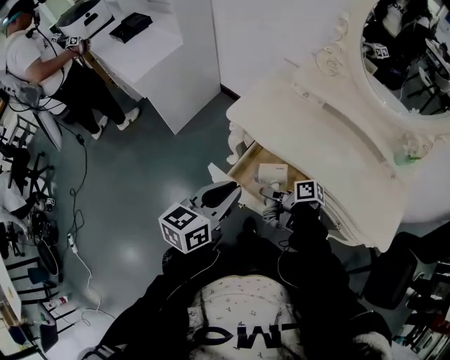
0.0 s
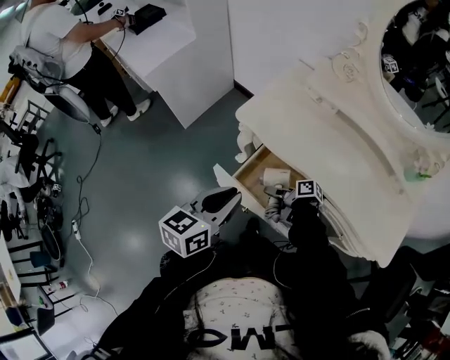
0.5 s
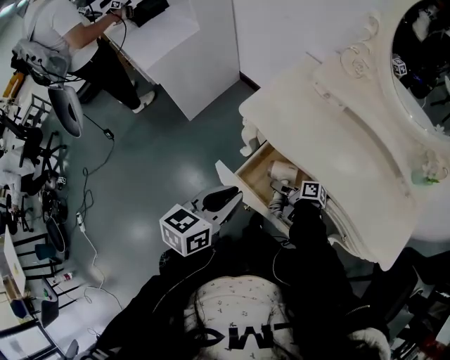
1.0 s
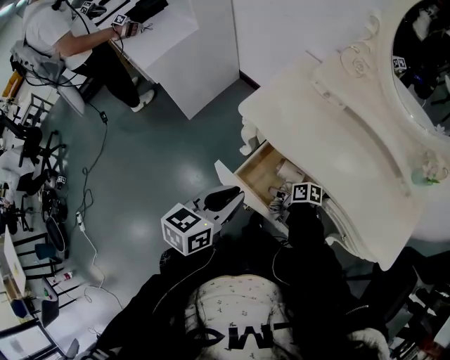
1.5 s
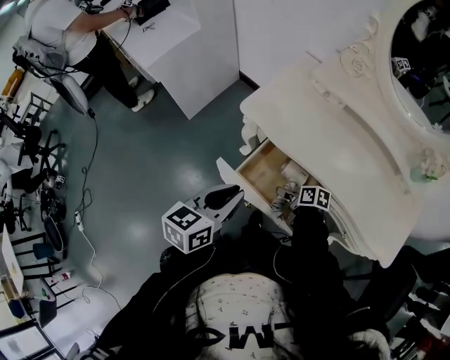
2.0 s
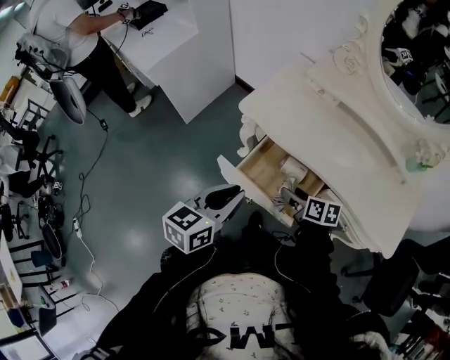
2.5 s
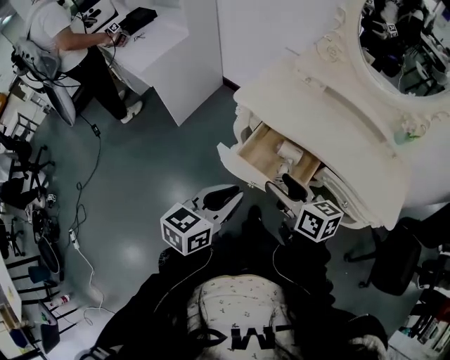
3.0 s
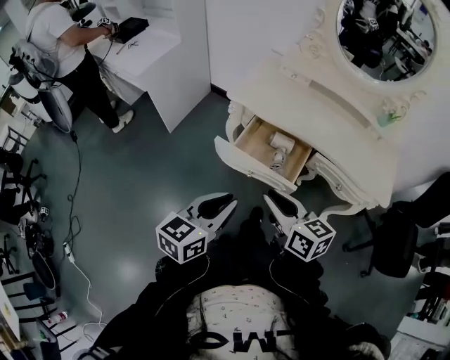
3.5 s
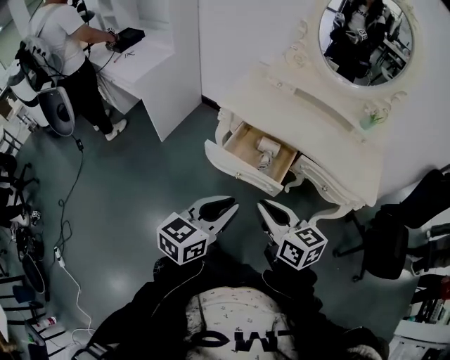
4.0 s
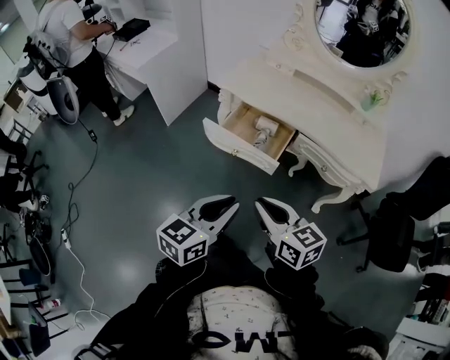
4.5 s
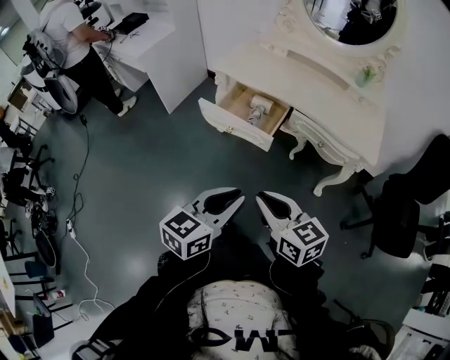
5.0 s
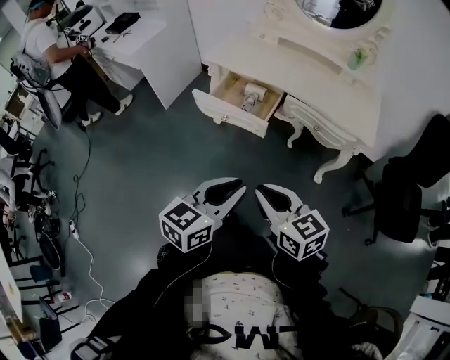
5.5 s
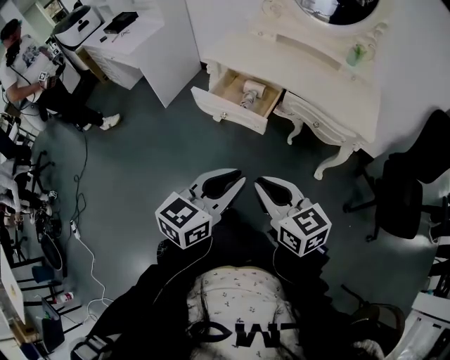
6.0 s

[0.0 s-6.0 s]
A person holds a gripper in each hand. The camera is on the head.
0.0 to 2.0 s: The right gripper goes approximately 10 cm downward and to the right, and turns by roughly 20 degrees.
2.0 to 4.0 s: The left gripper heads backward, covering some 20 cm. The right gripper heads upward and backward, covering approximately 40 cm, tips its fingers upward by approximately 30 degrees, and closes up.
4.0 to 6.0 s: The two grippers go about 20 cm backward and to the right.

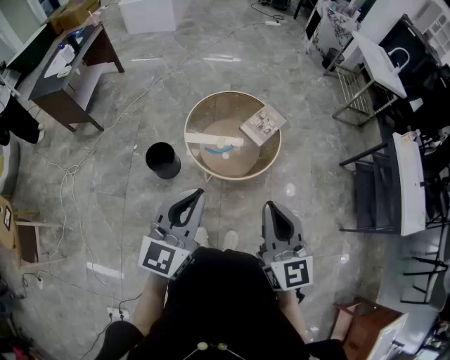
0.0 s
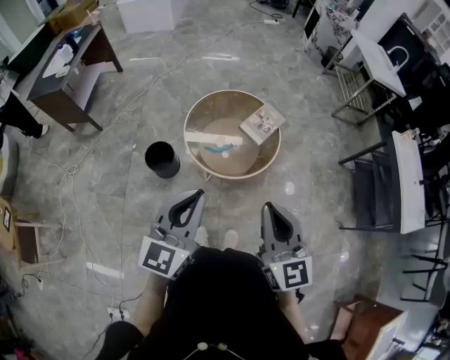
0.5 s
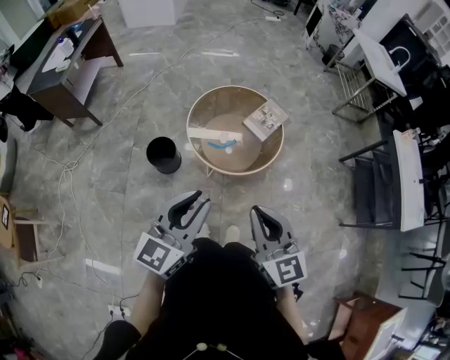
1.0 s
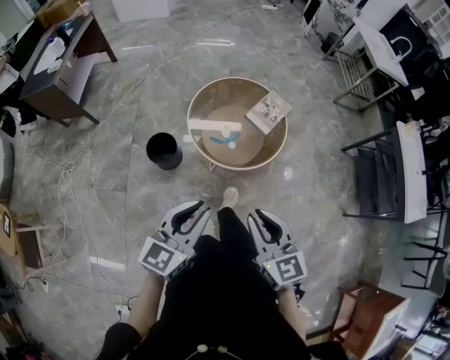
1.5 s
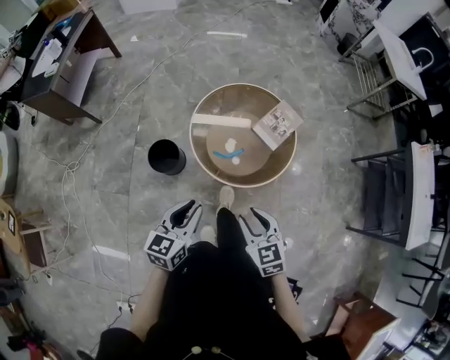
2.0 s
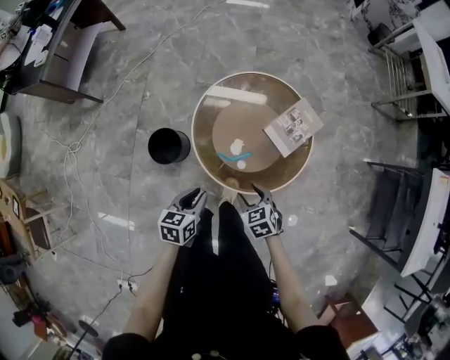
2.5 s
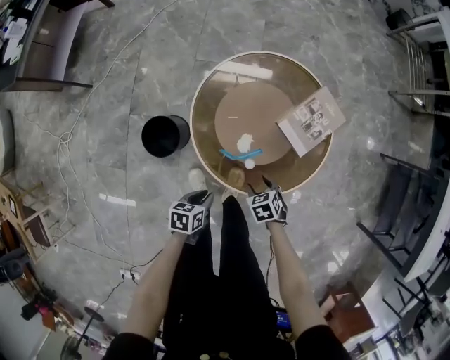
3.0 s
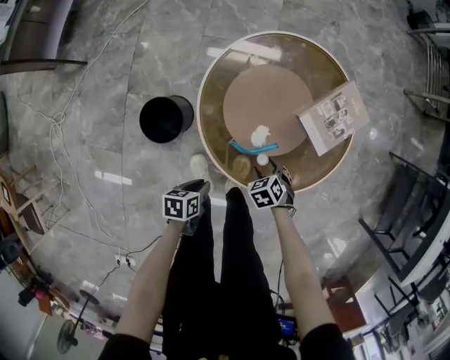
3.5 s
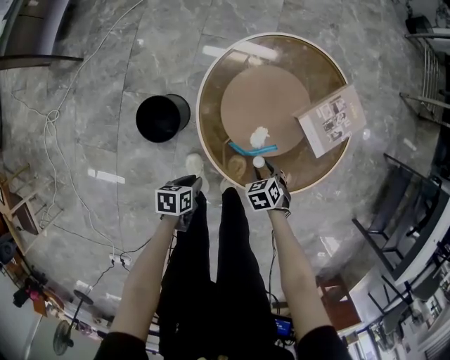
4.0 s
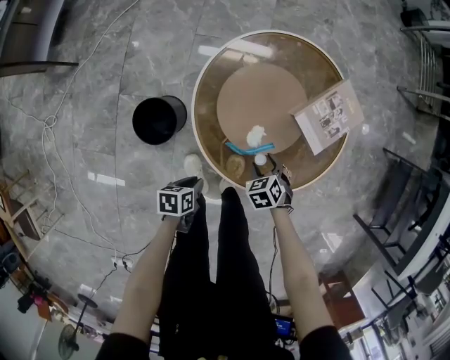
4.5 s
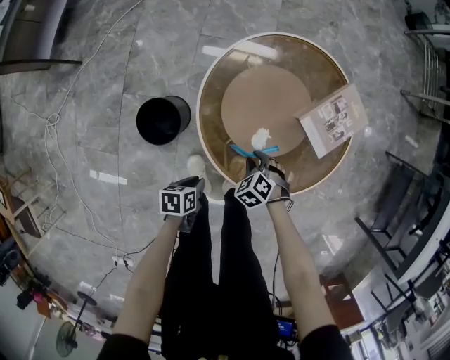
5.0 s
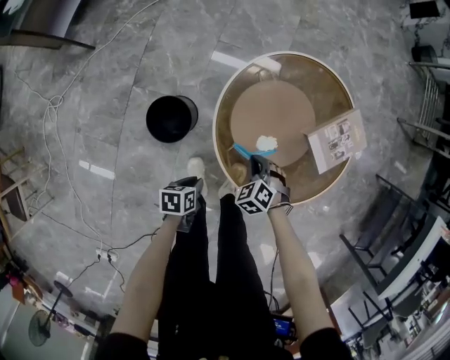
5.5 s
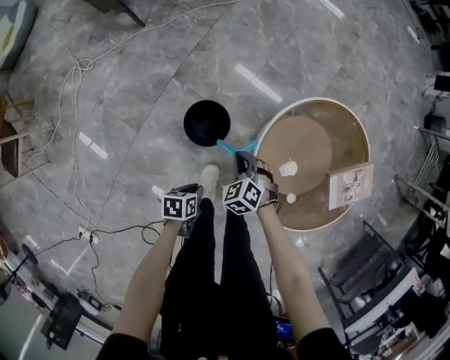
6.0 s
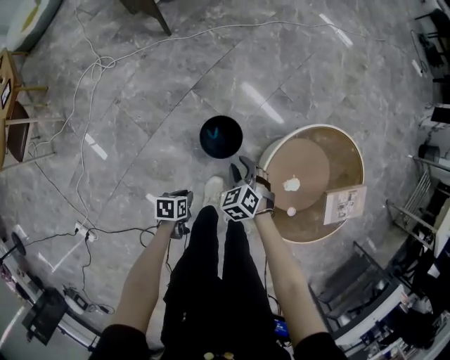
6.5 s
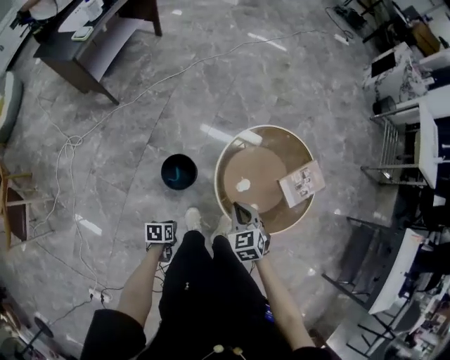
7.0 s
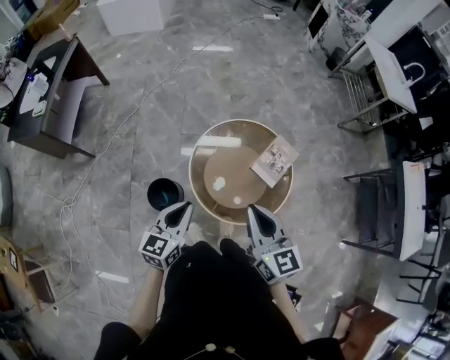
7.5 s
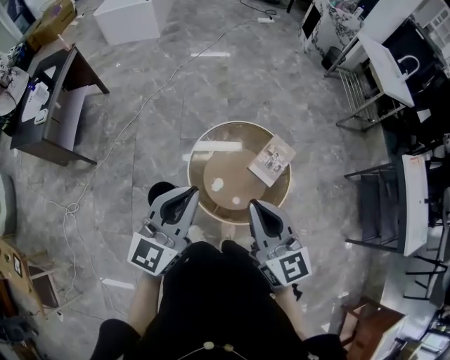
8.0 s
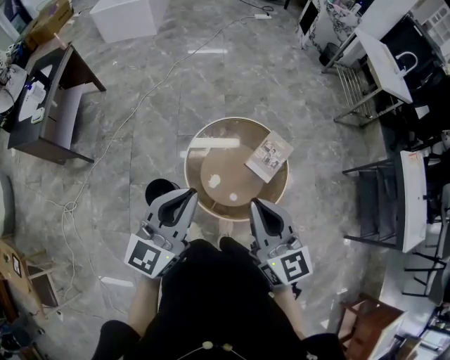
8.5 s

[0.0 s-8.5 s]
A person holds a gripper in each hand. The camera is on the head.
0.0 to 2.0 s: The right gripper moves downward, some 20 cm, tips its fingers downward by roughly 30 degrees, and opens its fingers. Meanwhile the left gripper travels downward and forward by roughly 20 cm, and turns by roughly 30 degrees.
2.0 to 4.0 s: Both grippers travel together downward, some 40 cm. The right gripper angles its fingers downward, by some 40 degrees. Meanwhile the left gripper angles its fingers downward, by roughly 30 degrees.
4.0 to 6.5 s: The right gripper shifts by about 40 cm, twists roughly 40 degrees counterclockwise, seen from behind, and closes, then opens again, while the left gripper shifts by roughly 25 cm, and changes its angle by some 30 degrees.
6.5 to 8.5 s: The grippers both shift upward and to the right by approximately 60 cm. The right gripper points its fingers some 60 degrees further upward, and closes; the left gripper tilts its fingers about 60 degrees upward.

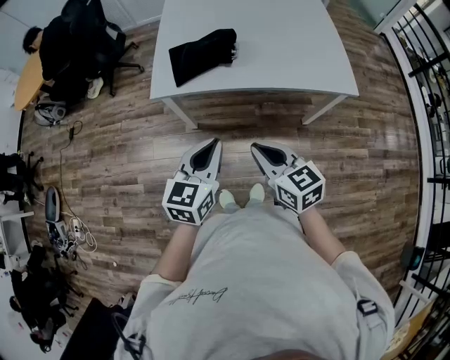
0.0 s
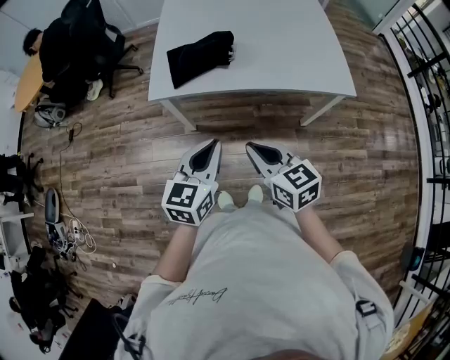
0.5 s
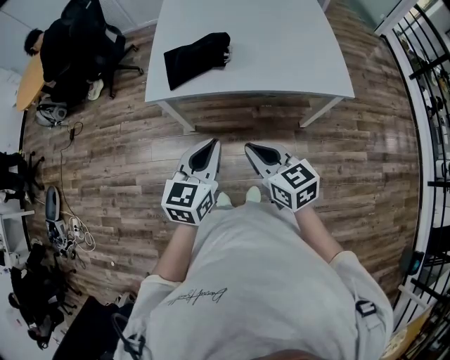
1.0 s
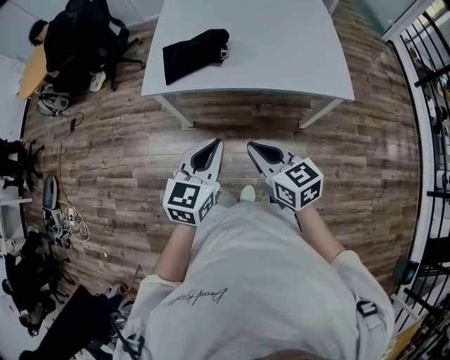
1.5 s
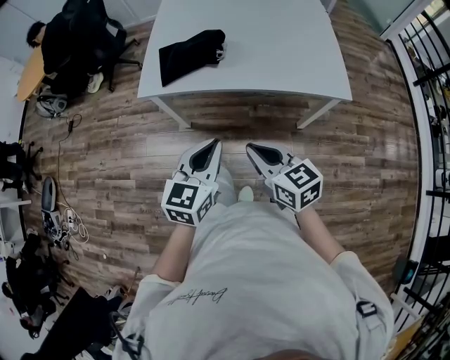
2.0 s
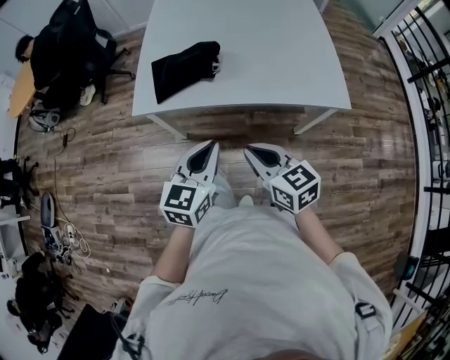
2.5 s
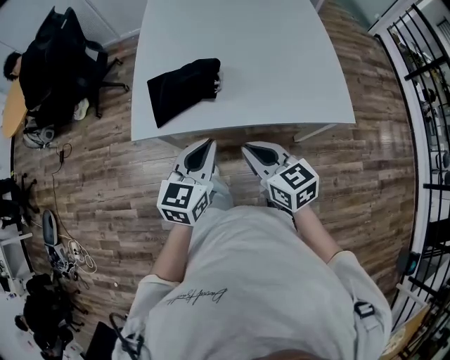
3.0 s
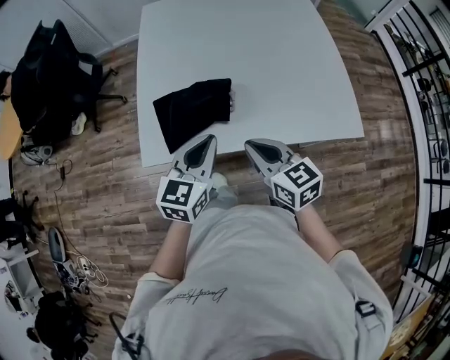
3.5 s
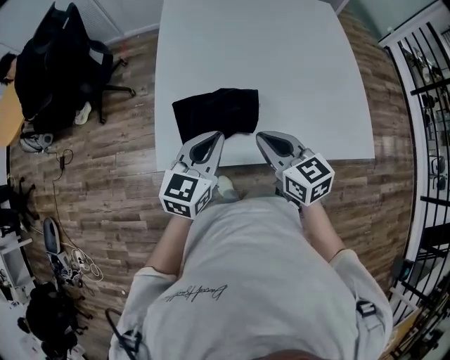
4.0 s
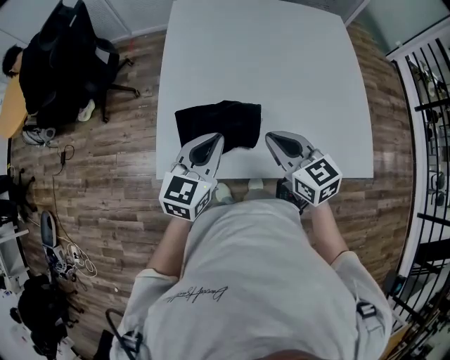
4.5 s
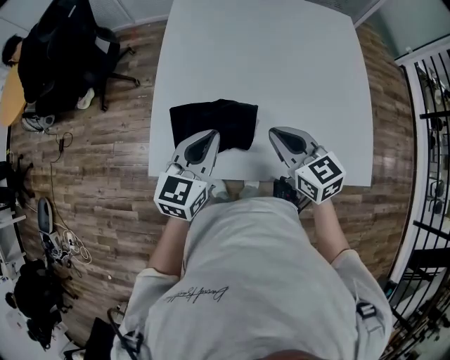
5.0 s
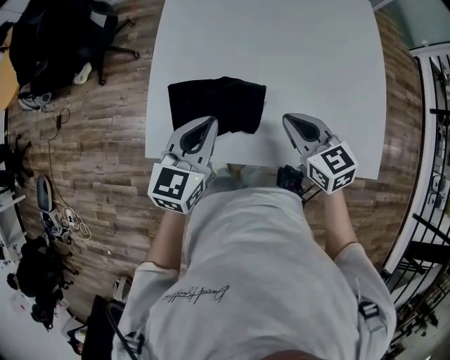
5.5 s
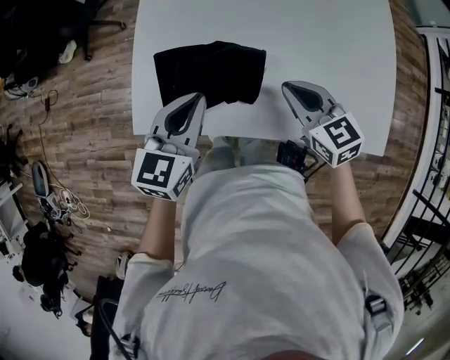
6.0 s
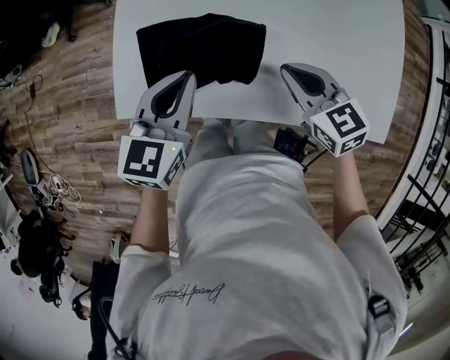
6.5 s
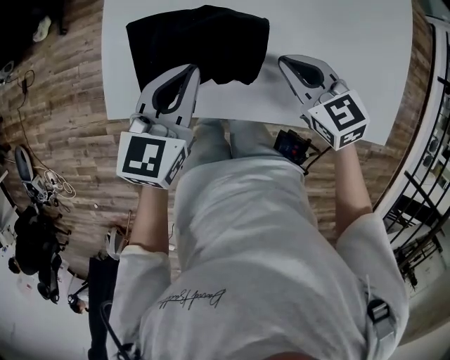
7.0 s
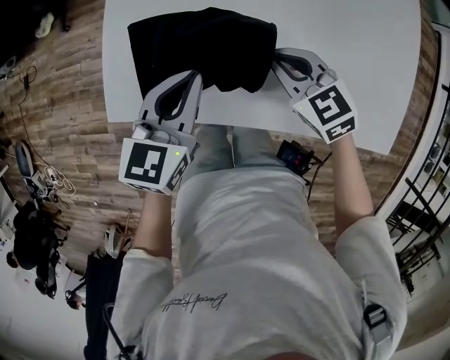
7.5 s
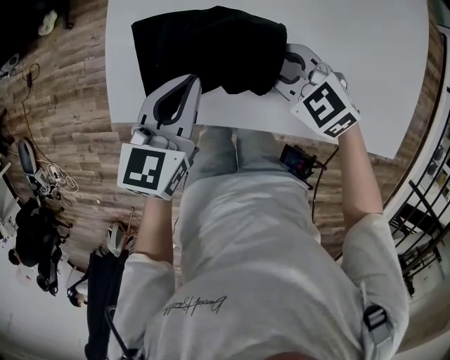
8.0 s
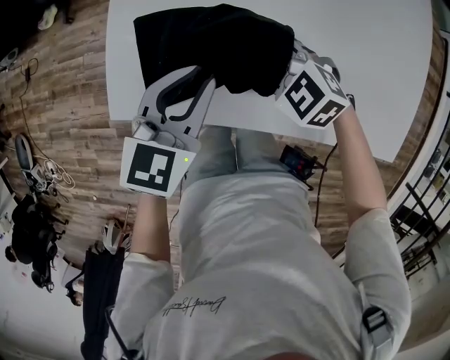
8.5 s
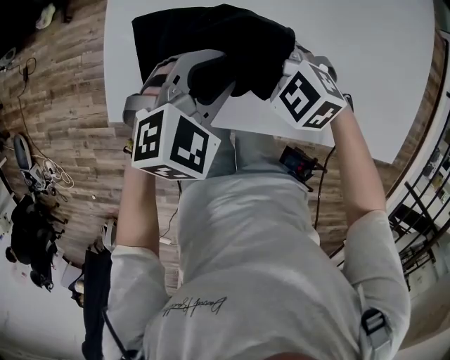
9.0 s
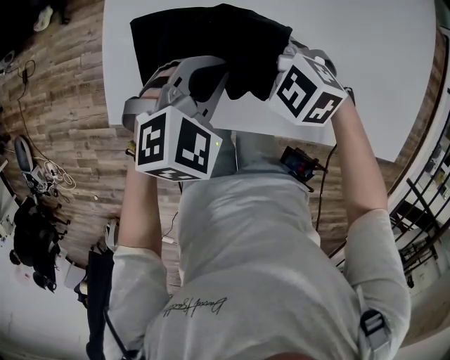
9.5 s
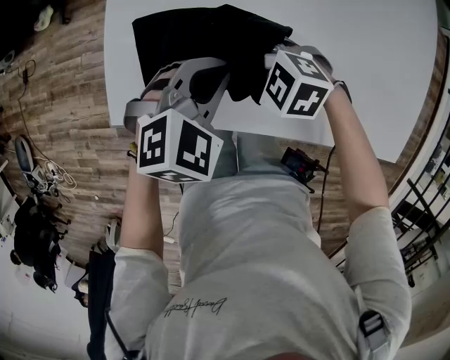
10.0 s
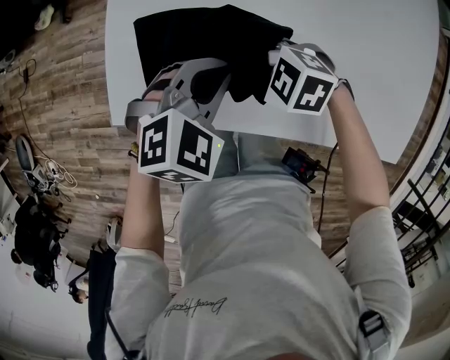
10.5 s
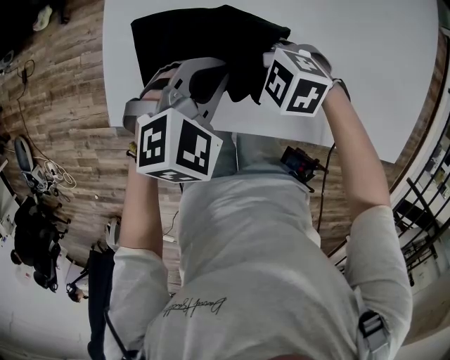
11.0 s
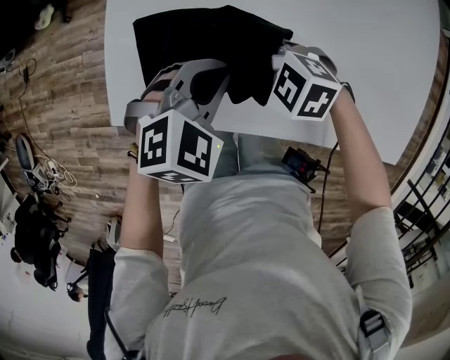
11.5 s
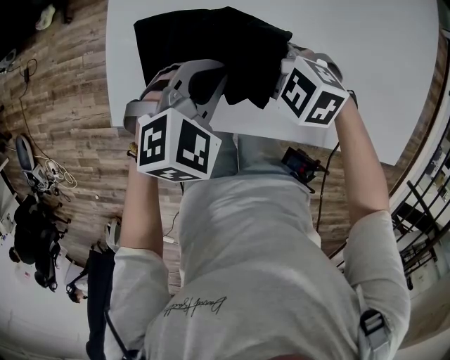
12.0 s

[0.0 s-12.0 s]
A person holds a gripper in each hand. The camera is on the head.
0.0 to 2.0 s: Both grippers travel together to the right, about 5 cm.
2.0 to 4.0 s: Both grippers move forward, about 30 cm.
4.0 to 6.0 s: The left gripper ends up approximately 5 cm from where it was. The right gripper goes some 15 cm to the right, forward and downward.
6.0 to 8.0 s: The right gripper heads downward and to the left, covering approximately 10 cm, changes its angle by approximately 30 degrees, and opens its fingers; the left gripper heads downward, covering approximately 10 cm.
8.0 to 10.0 s: The left gripper ends up some 5 cm from where it was, twists roughly 40 degrees clockwise, seen from behind, and opens and closes again. Meanwhile the right gripper moves about 5 cm, turns by roughly 20 degrees, and opens up.
10.0 to 12.0 s: The grippers stay close to where they were, moving slightly.
